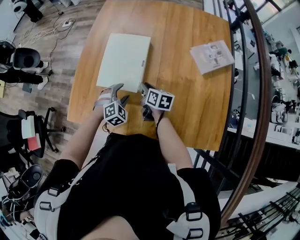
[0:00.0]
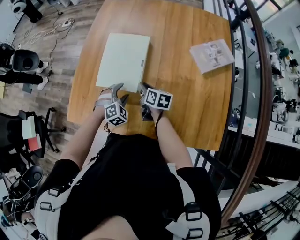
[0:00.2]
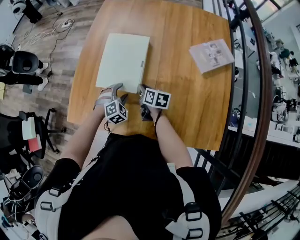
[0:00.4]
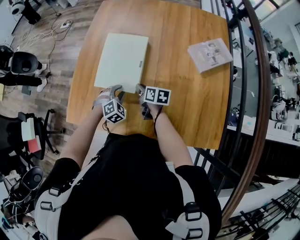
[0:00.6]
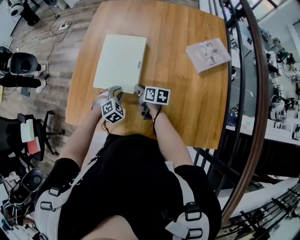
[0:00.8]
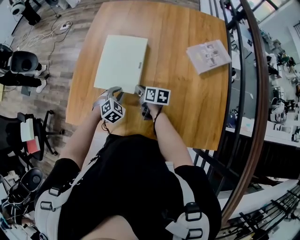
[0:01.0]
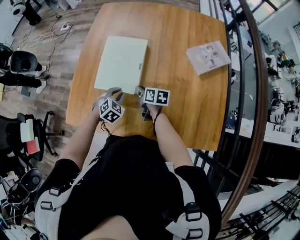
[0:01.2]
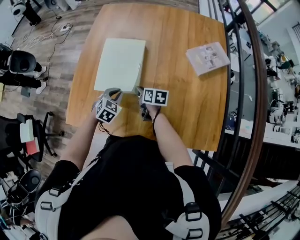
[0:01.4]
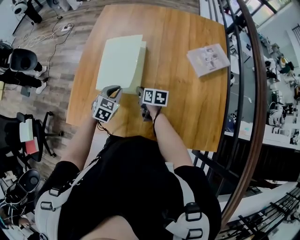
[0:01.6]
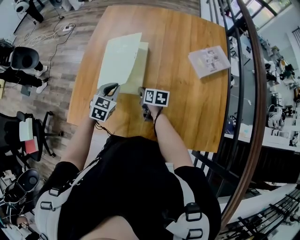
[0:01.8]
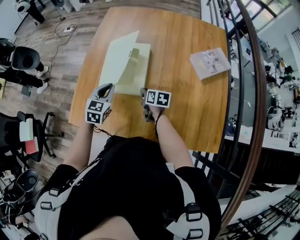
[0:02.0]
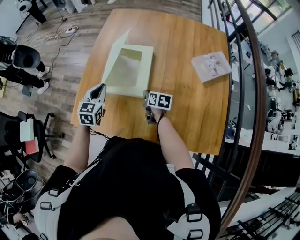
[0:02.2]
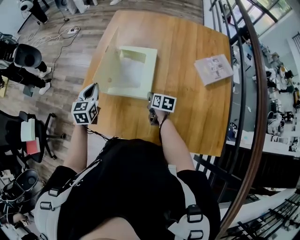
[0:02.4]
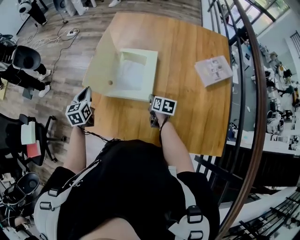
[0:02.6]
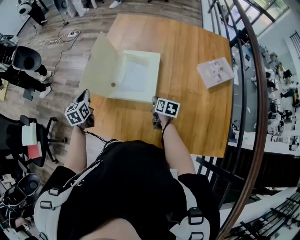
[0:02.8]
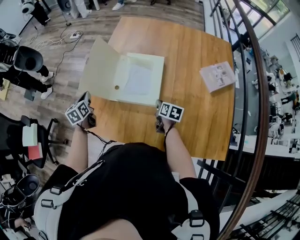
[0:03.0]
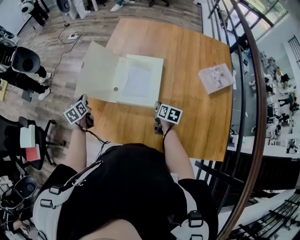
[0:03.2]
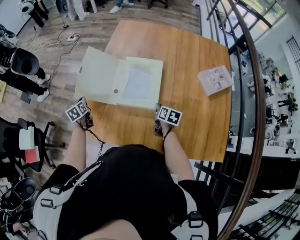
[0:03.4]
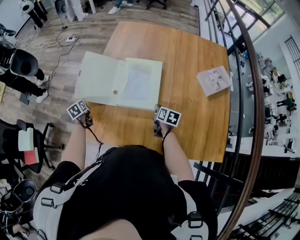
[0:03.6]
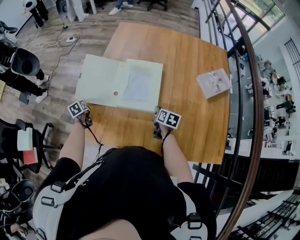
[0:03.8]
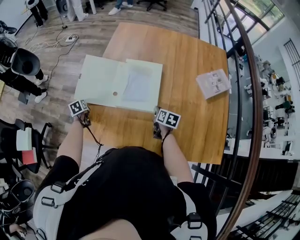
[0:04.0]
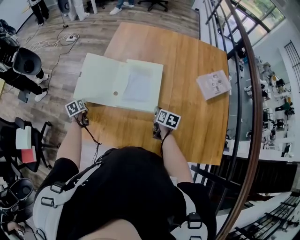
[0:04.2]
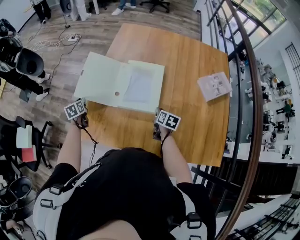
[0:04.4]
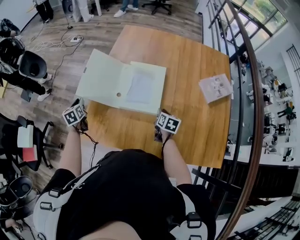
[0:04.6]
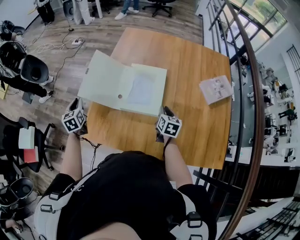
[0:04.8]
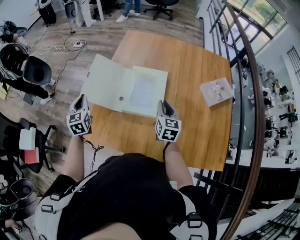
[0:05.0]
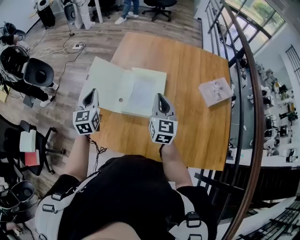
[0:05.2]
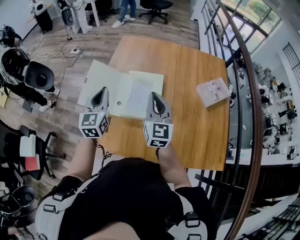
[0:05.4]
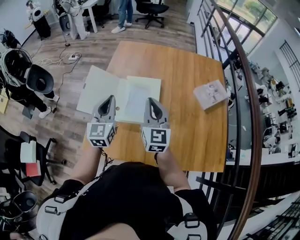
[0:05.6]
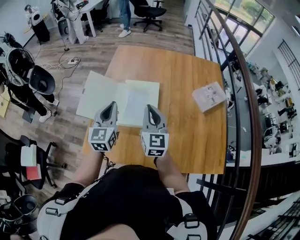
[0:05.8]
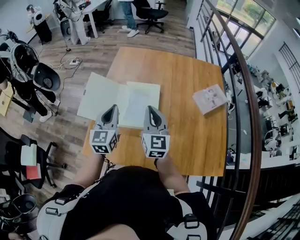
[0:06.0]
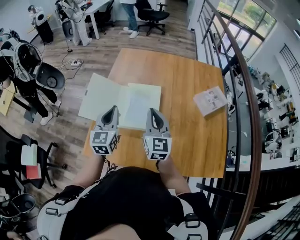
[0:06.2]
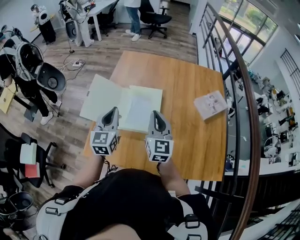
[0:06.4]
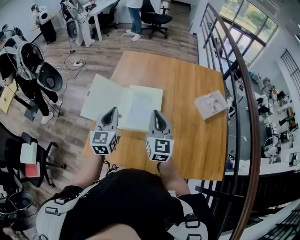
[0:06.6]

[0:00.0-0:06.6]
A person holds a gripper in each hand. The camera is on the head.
0:00.0 to 0:01.6: The left gripper ends up about 5 cm from where it was, swivels approximately 30 degrees, and closes.
0:01.6 to 0:03.2: The left gripper is displaced to the left by some 30 cm, and twists some 50 degrees counterclockwise, seen from behind.
0:03.2 to 0:05.0: Both grippers travel together upward, roughly 15 cm. The right gripper rotates about 40 degrees; the left gripper turns by some 30 degrees.
0:05.0 to 0:06.6: The right gripper moves upward, about 15 cm, and rotates some 20 degrees, while the left gripper shifts roughly 20 cm to the right and upward, and swivels some 20 degrees.

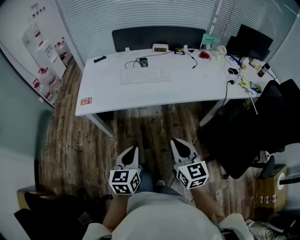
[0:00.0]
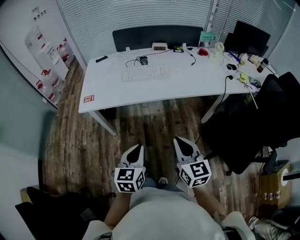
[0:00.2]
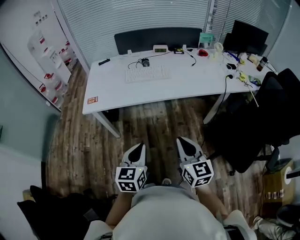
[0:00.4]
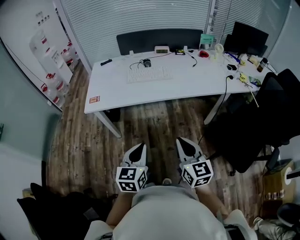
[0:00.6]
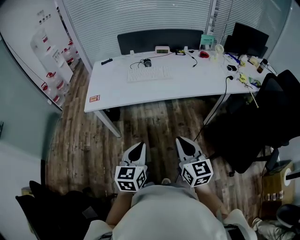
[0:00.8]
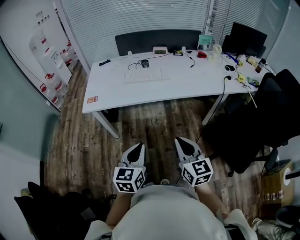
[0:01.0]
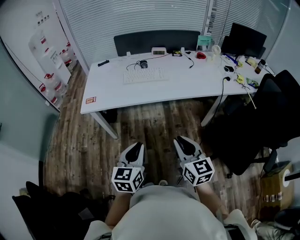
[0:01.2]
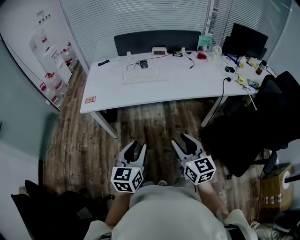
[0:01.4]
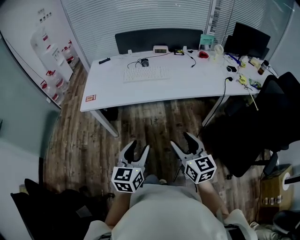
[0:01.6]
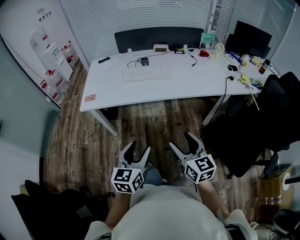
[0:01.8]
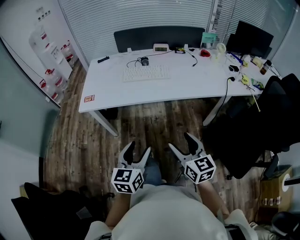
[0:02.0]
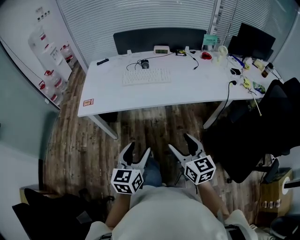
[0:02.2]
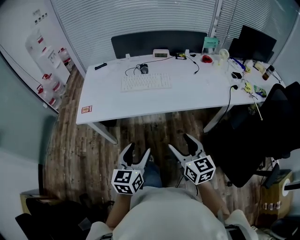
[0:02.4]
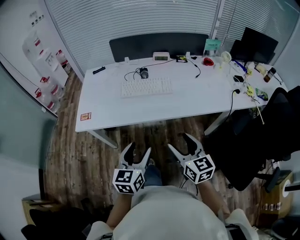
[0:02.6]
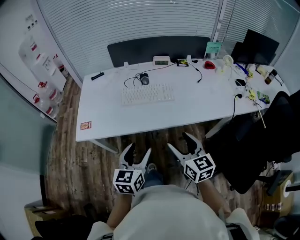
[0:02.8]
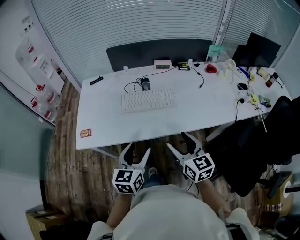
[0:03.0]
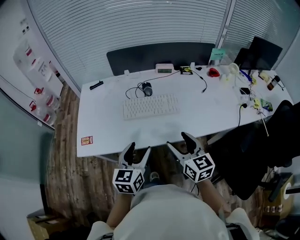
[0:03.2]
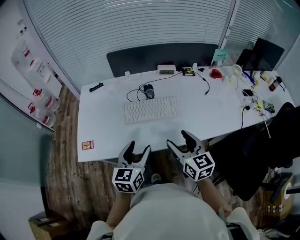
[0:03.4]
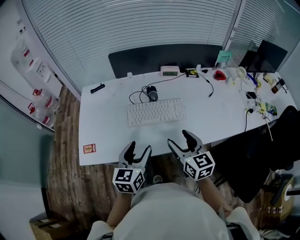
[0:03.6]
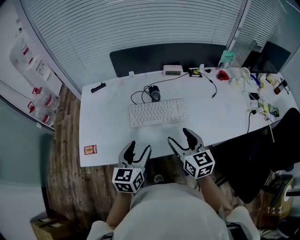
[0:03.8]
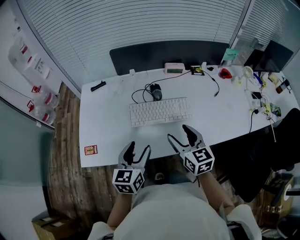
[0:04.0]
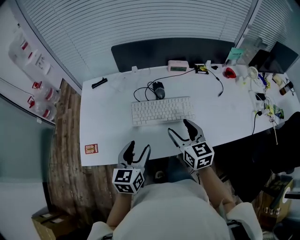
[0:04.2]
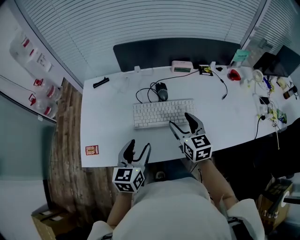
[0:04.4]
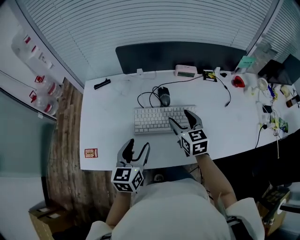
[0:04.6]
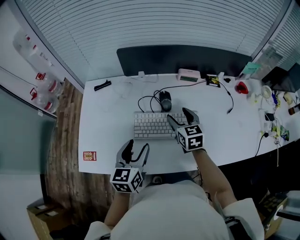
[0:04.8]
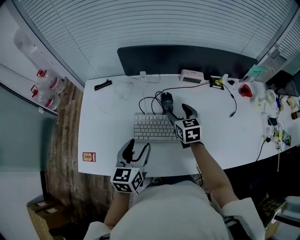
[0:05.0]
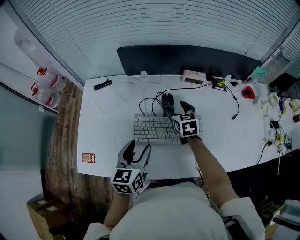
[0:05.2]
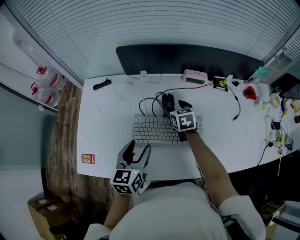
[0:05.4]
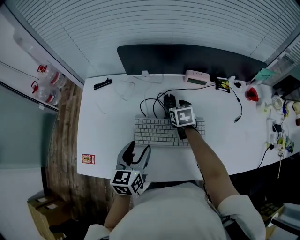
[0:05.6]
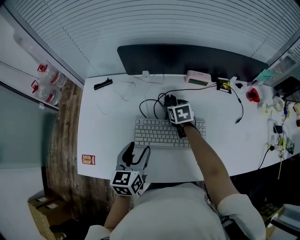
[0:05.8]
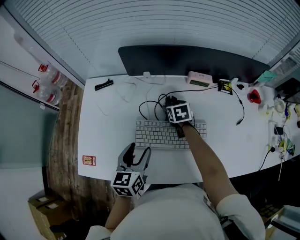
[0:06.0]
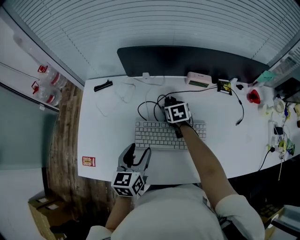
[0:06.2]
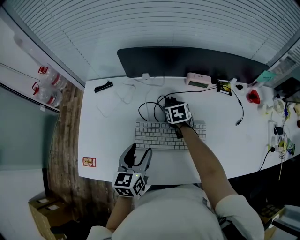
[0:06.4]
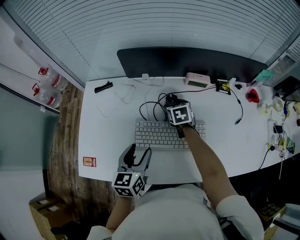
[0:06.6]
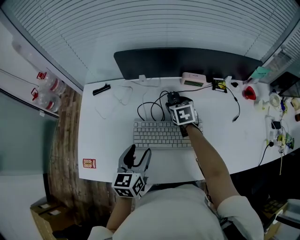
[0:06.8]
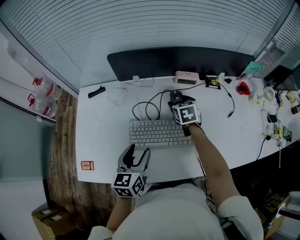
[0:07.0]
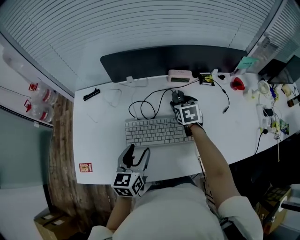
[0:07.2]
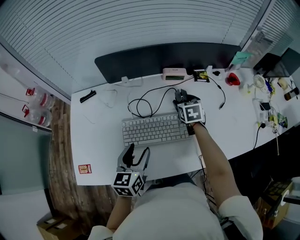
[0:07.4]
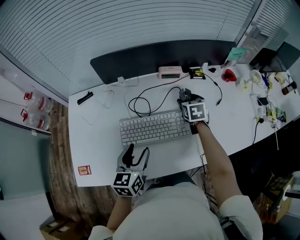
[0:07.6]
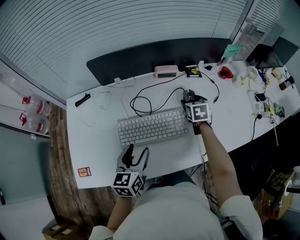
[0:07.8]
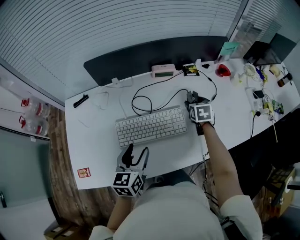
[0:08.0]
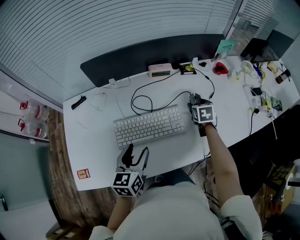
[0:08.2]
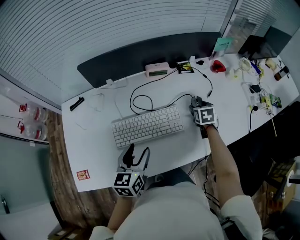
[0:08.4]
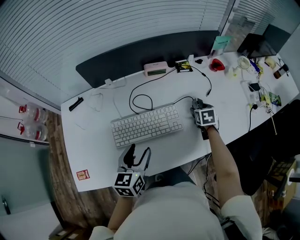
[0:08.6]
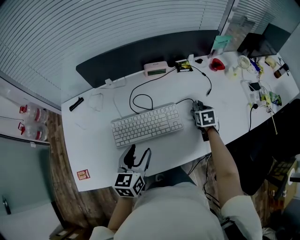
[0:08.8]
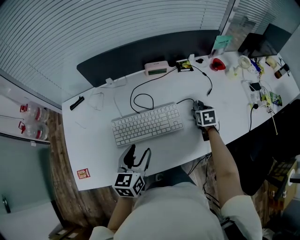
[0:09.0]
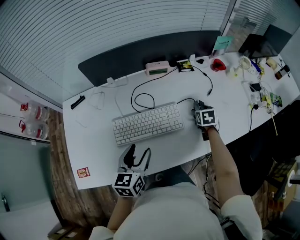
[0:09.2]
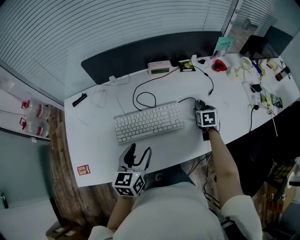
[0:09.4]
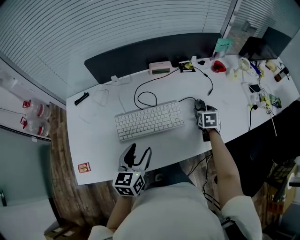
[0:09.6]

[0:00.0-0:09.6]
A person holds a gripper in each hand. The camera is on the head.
0:00.0 to 0:01.6: The right gripper changes place by about 5 cm, and opens its fingers, while the left gripper moves backward, about 5 cm, and opens.
0:01.6 to 0:03.2: The two grippers go roughly 30 cm forward.
0:03.2 to 0:04.8: The right gripper travels forward by approximately 30 cm; the left gripper shifts about 20 cm forward.
0:04.8 to 0:06.4: The left gripper shifts by some 5 cm. The right gripper goes about 20 cm forward and downward, and swivels some 20 degrees.
0:06.4 to 0:08.0: The right gripper shifts approximately 25 cm to the right, and swivels roughly 20 degrees; the left gripper travels to the right by some 5 cm.
0:08.0 to 0:09.6: The right gripper travels to the right and backward by roughly 10 cm.

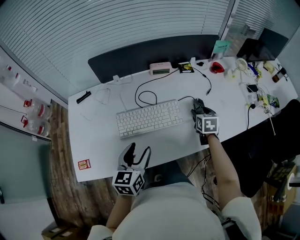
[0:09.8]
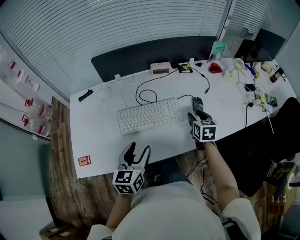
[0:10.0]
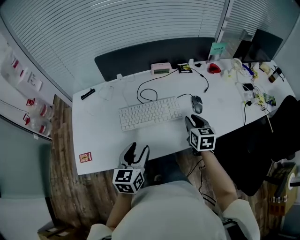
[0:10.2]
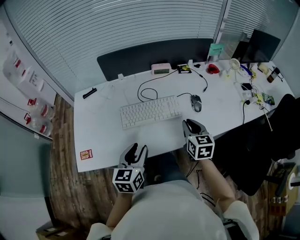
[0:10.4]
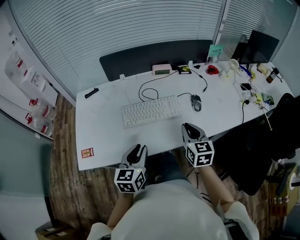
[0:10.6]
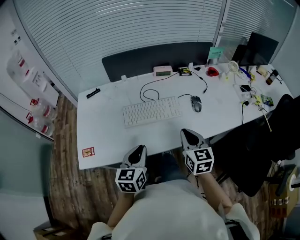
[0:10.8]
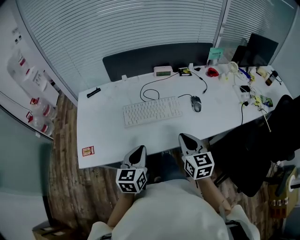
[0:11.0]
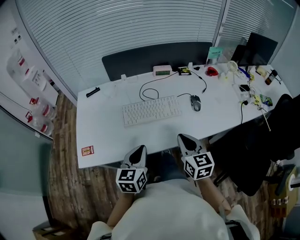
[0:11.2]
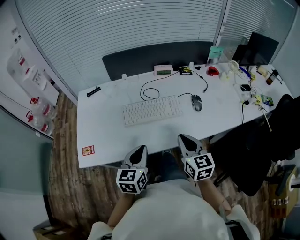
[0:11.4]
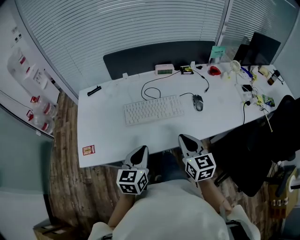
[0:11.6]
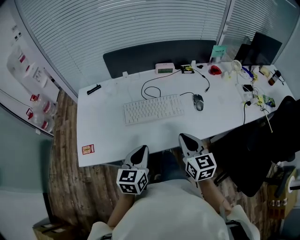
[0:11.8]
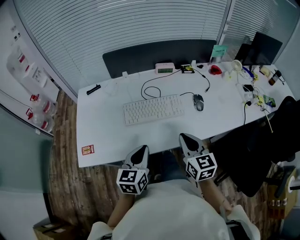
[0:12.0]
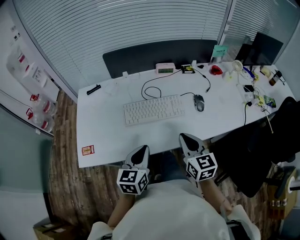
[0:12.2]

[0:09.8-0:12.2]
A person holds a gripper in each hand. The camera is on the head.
0:09.8 to 0:11.0: The left gripper moves backward, about 10 cm, and closes its fingers, while the right gripper is displaced backward, to the left and upward by about 30 cm, rotates approximately 30 degrees, and closes.
0:11.0 to 0:12.2: Neither gripper changes place.

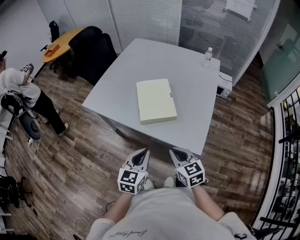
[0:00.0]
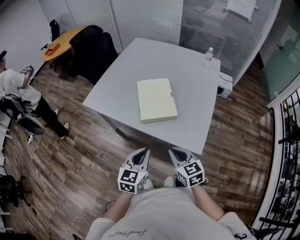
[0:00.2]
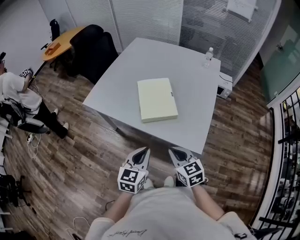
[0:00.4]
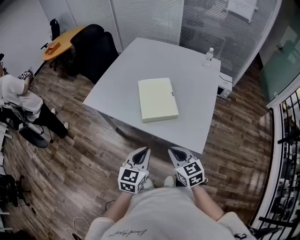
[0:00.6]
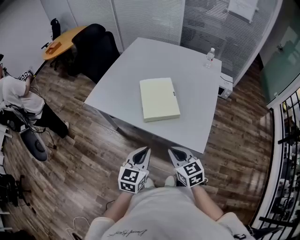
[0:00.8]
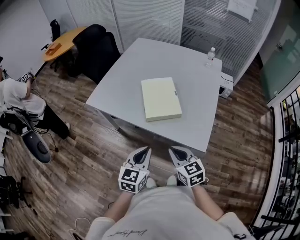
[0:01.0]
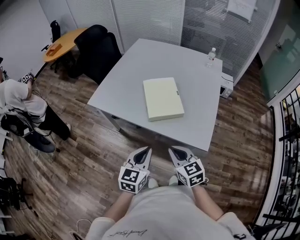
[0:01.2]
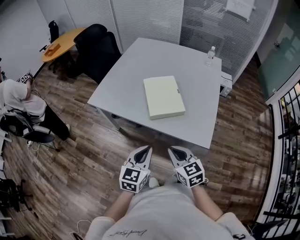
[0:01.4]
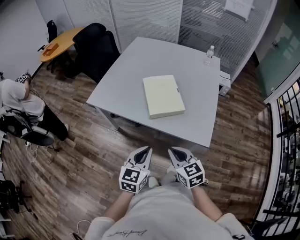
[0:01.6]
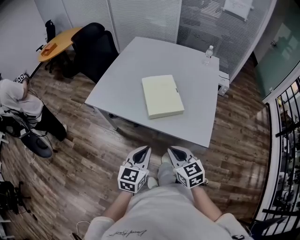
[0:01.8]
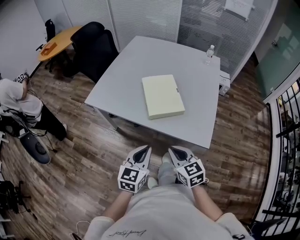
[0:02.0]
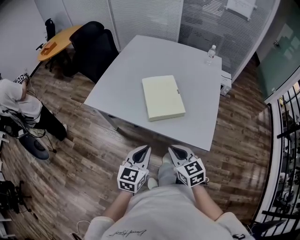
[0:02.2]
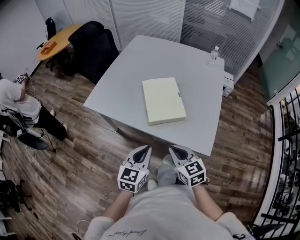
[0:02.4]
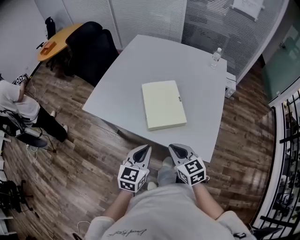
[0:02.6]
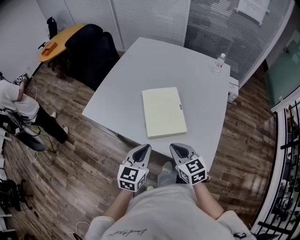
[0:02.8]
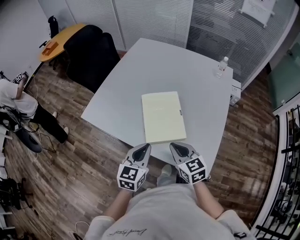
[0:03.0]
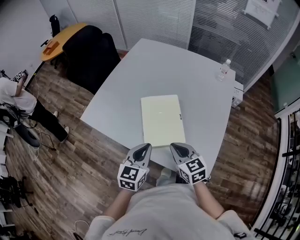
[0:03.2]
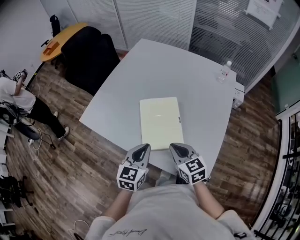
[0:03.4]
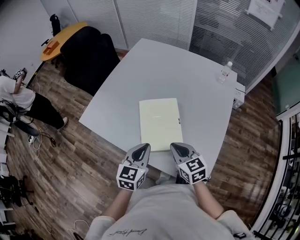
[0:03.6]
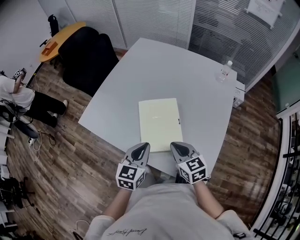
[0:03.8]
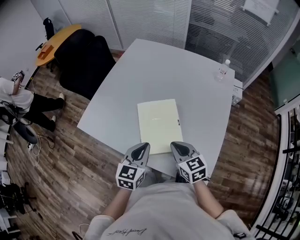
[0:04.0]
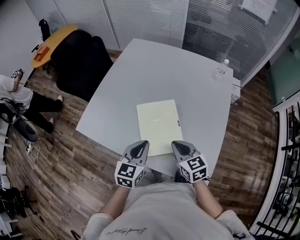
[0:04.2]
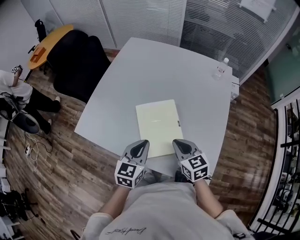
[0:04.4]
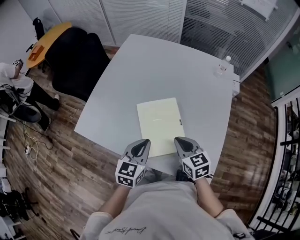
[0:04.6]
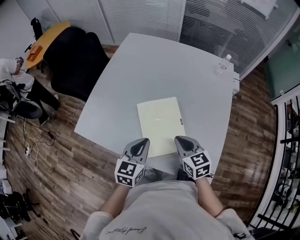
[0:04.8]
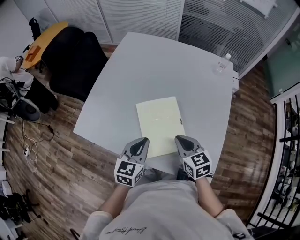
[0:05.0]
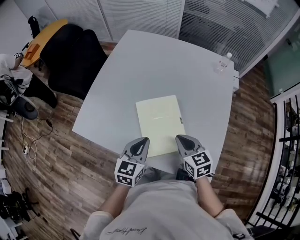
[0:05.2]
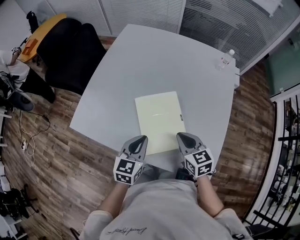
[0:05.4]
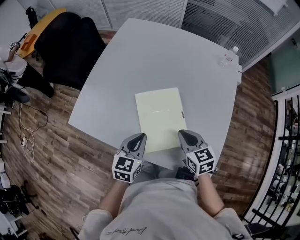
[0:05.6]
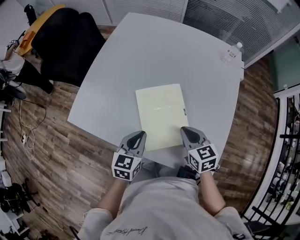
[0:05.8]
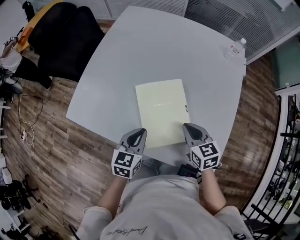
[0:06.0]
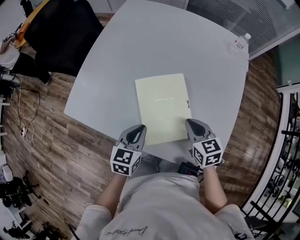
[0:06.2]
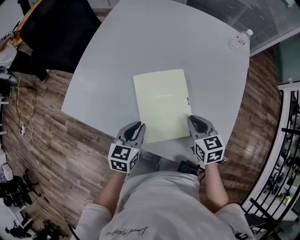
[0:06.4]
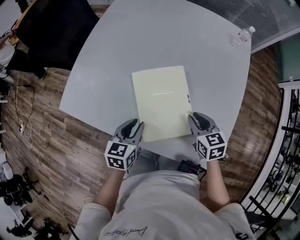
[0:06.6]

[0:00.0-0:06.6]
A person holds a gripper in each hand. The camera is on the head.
0:00.0 to 0:01.6: The grippers both shift to the left by approximately 5 cm.
0:01.6 to 0:03.2: The grippers both shift forward by about 20 cm.
0:03.2 to 0:05.0: Both grippers travel together forward, approximately 10 cm.
0:05.0 to 0:06.6: The left gripper moves downward, roughly 10 cm. Meanwhile the right gripper goes about 10 cm downward and to the right.
